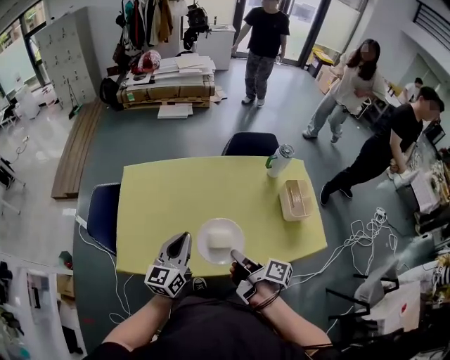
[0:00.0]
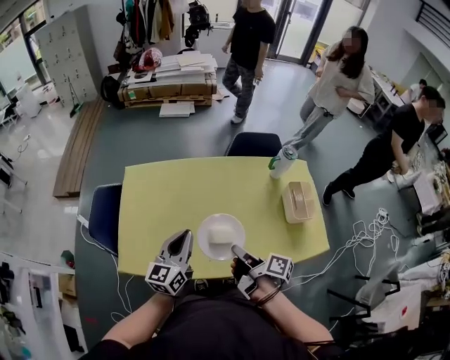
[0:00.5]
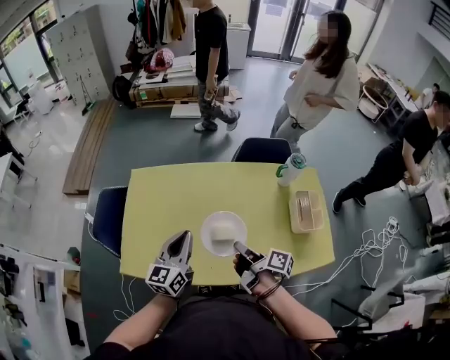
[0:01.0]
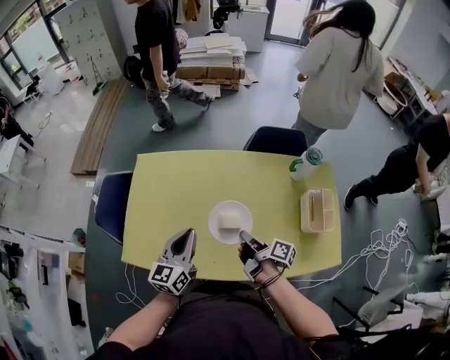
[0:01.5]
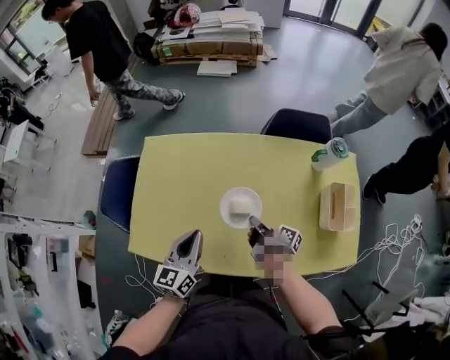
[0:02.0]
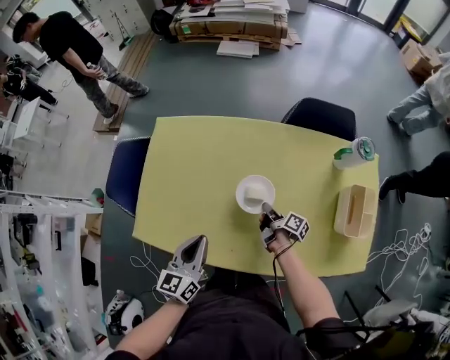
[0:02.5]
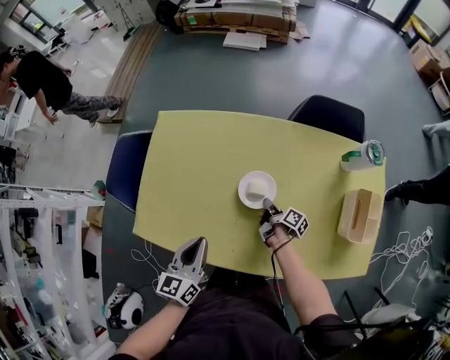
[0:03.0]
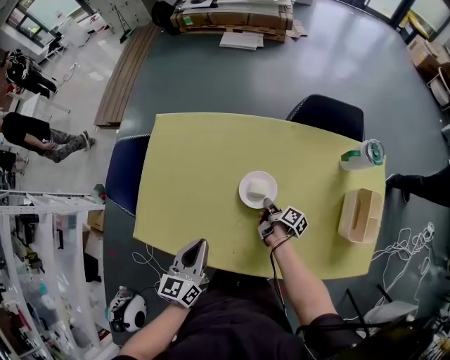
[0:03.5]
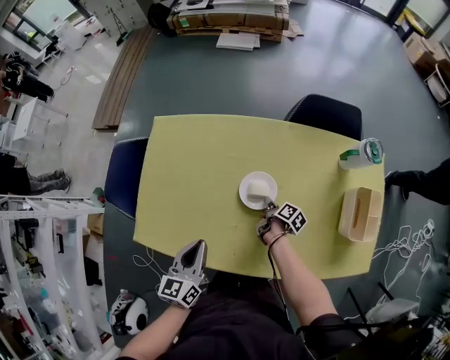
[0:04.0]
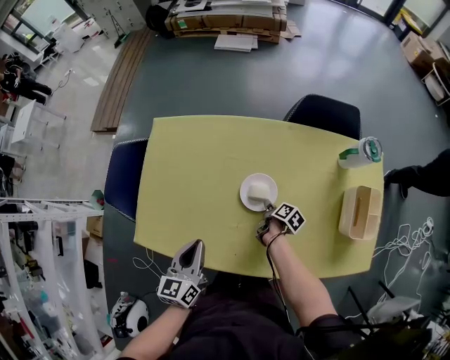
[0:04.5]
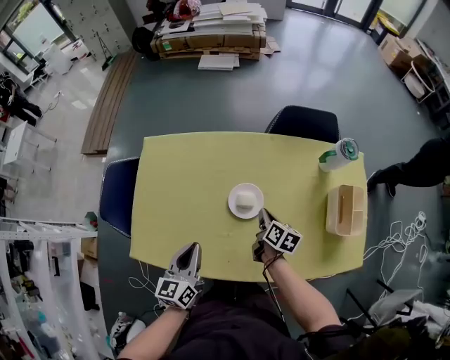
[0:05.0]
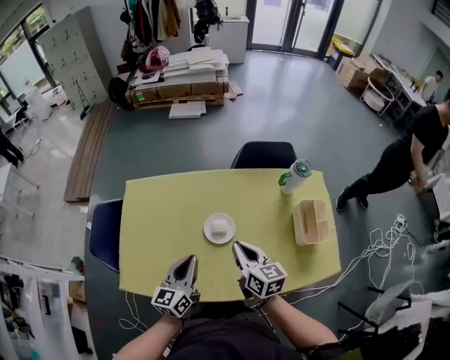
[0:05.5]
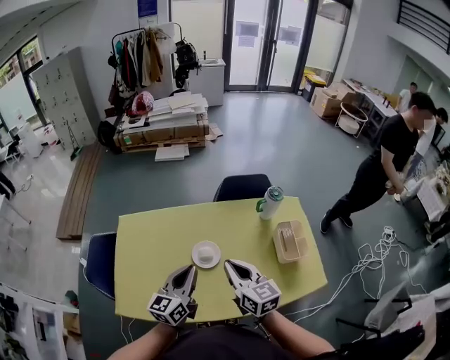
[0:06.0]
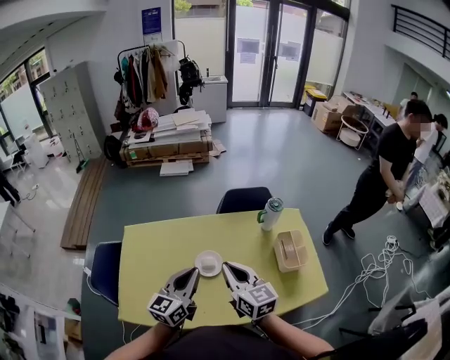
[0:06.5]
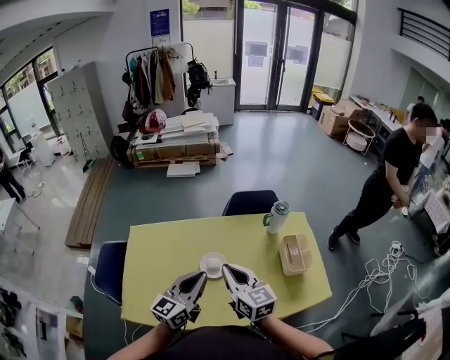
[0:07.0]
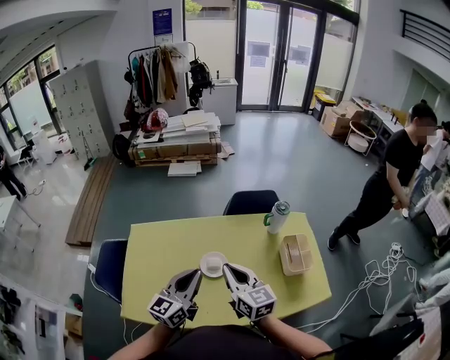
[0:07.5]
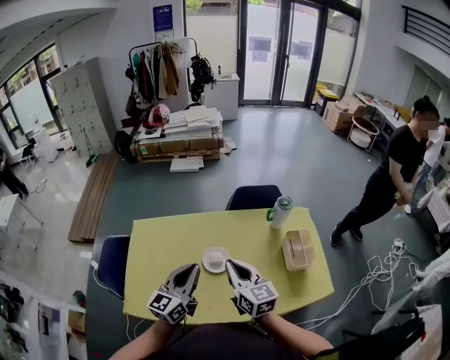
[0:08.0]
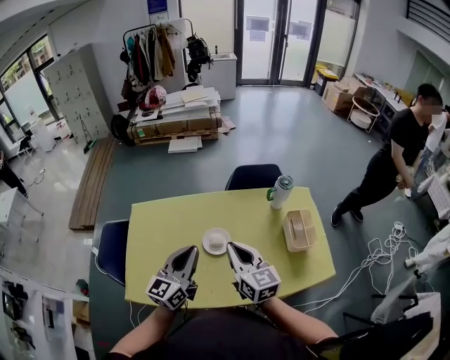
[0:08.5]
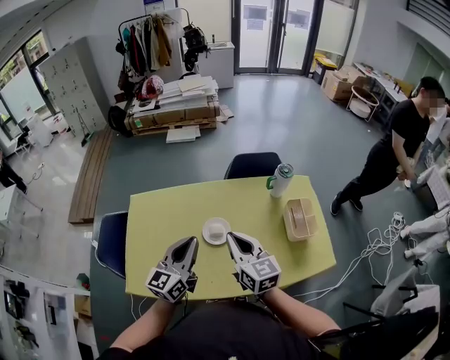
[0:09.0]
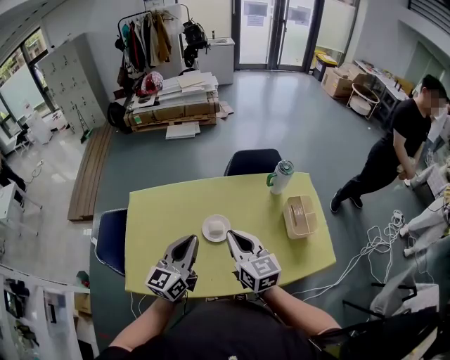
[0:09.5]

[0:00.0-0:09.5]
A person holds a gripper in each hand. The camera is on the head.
0:00.0 to 0:02.0: The left gripper heads downward and forward, covering about 10 cm. Meanwhile the right gripper heads forward and downward, covering about 25 cm.
0:02.0 to 0:04.0: The right gripper moves downward and forward, about 15 cm, and swivels roughly 30 degrees, while the left gripper moves downward, approximately 5 cm.
0:04.0 to 0:05.5: The right gripper is displaced upward by roughly 35 cm, and twists roughly 50 degrees counterclockwise, seen from behind, while the left gripper shifts about 10 cm upward and to the right.
0:05.5 to 0:07.5: The left gripper shifts approximately 15 cm upward, while the right gripper heads upward and backward, covering roughly 15 cm.
0:07.5 to 0:09.5: The grippers move only a little.

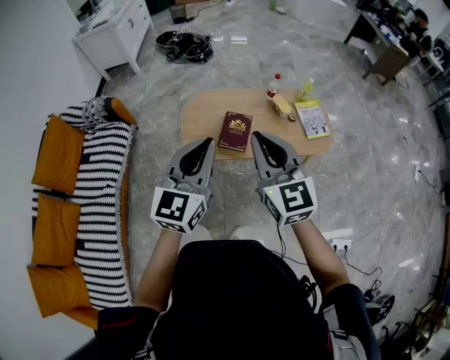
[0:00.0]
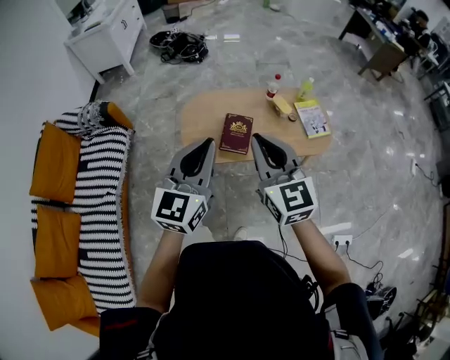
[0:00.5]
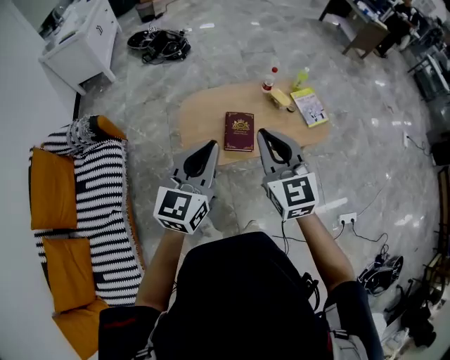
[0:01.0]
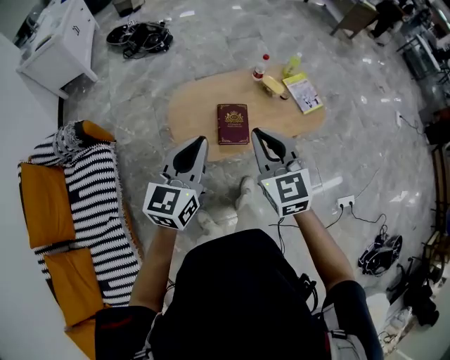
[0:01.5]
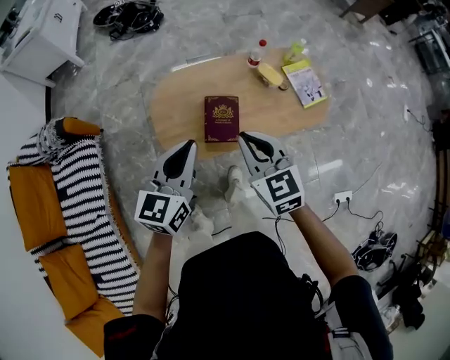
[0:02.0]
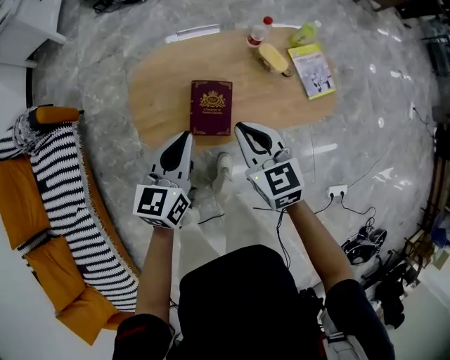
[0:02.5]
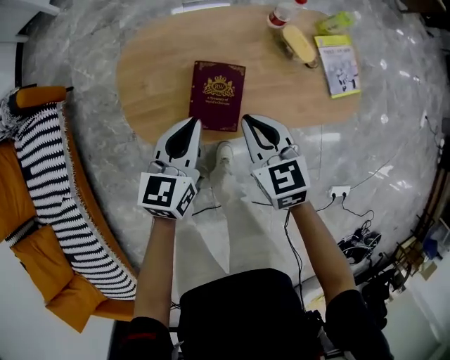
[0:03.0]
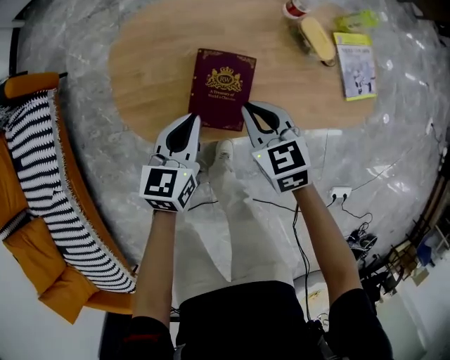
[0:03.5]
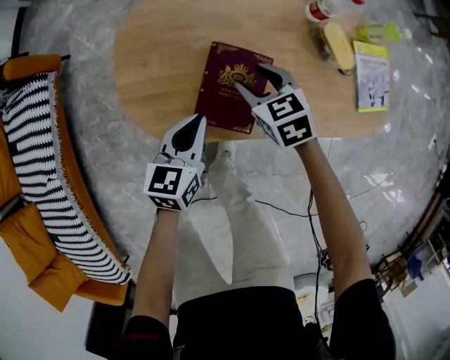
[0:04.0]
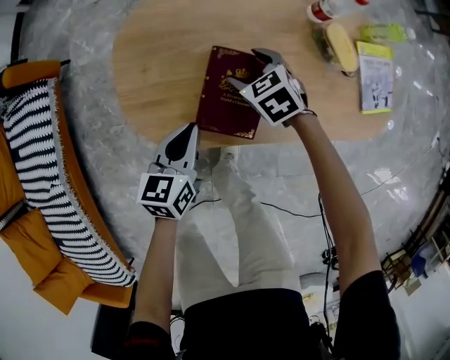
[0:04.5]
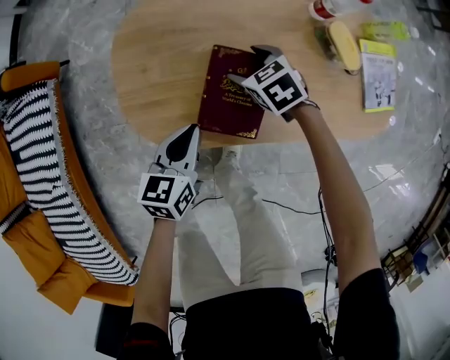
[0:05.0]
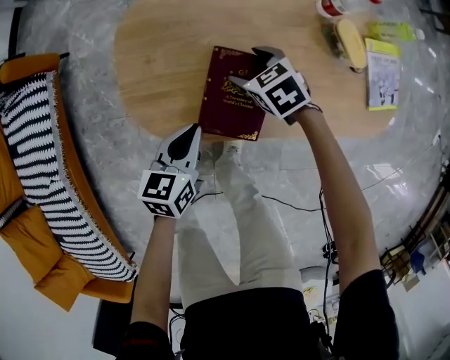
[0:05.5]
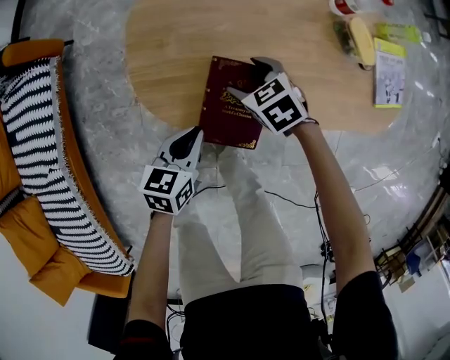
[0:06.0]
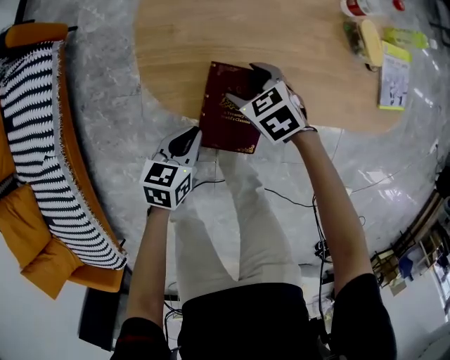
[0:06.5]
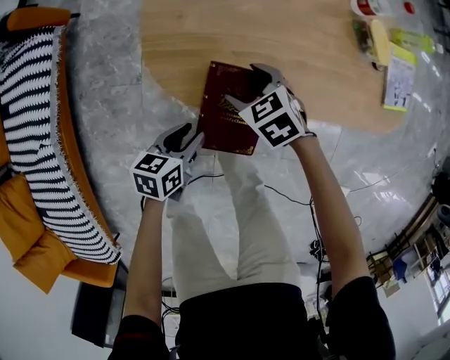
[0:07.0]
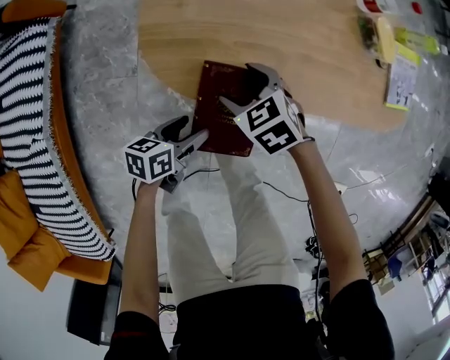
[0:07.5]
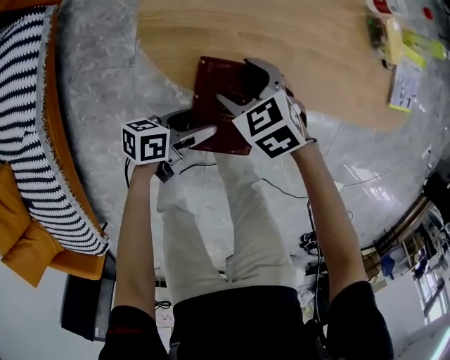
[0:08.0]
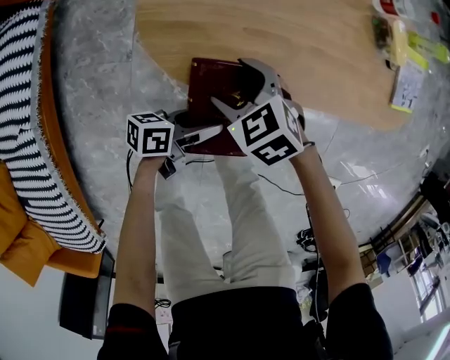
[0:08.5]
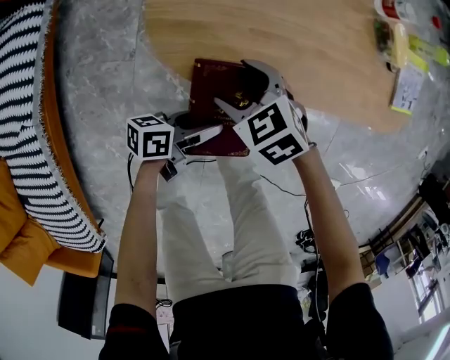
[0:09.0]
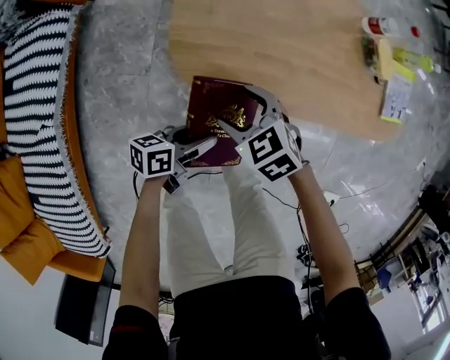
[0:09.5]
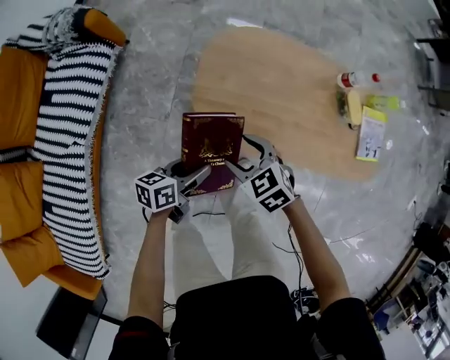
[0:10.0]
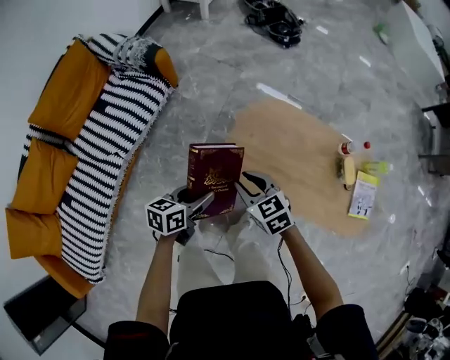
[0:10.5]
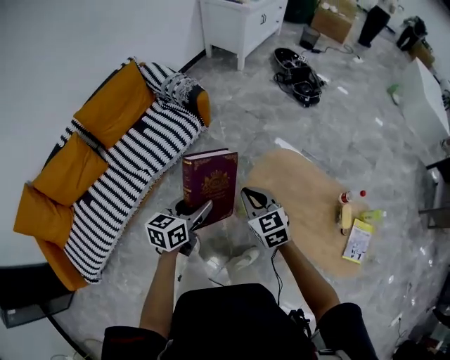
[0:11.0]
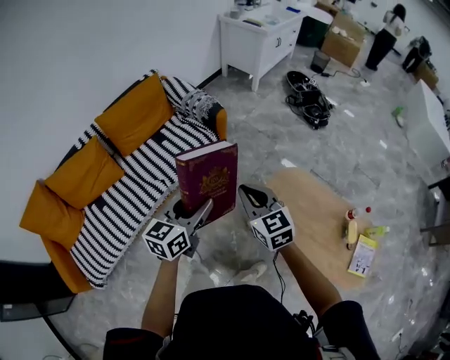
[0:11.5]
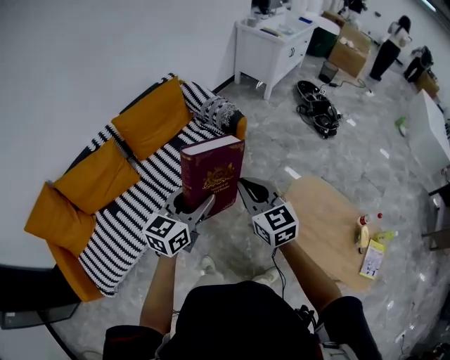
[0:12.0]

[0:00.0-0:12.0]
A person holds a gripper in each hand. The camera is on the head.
0:00.0 to 0:02.0: The right gripper is displaced downward and forward by about 25 cm, and changes its angle by some 20 degrees. The left gripper moves forward and downward, some 25 cm, and swivels some 20 degrees.
0:02.0 to 0:04.0: The left gripper goes roughly 35 cm downward, and swivels roughly 20 degrees. Meanwhile the right gripper shifts about 40 cm downward and forward, changes its angle by about 30 degrees, and opens.
0:04.0 to 0:06.0: The right gripper moves to the left and downward, some 10 cm, and opens its fingers. Meanwhile the left gripper is displaced to the left, backward and downward by some 10 cm.
0:06.0 to 0:08.0: The right gripper moves about 10 cm. The left gripper moves roughly 10 cm, changes its angle by roughly 40 degrees, and opens up.
0:08.0 to 0:10.0: Both grippers travel together upward, some 15 cm. The left gripper turns by some 20 degrees.
0:10.0 to 0:12.0: Both grippers travel together upward, some 40 cm. The right gripper points its fingers some 40 degrees further upward, and closes, while the left gripper rotates about 60 degrees.

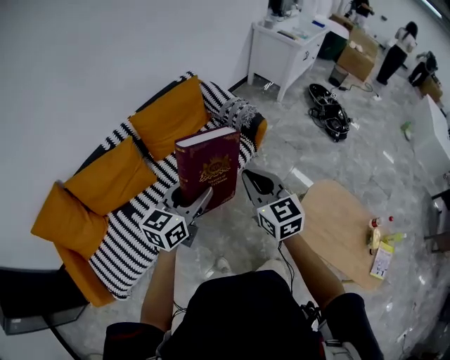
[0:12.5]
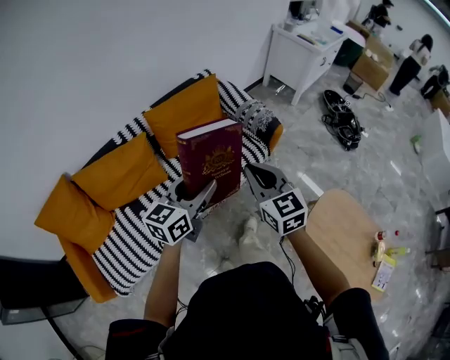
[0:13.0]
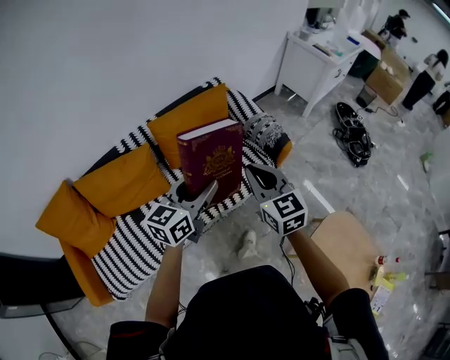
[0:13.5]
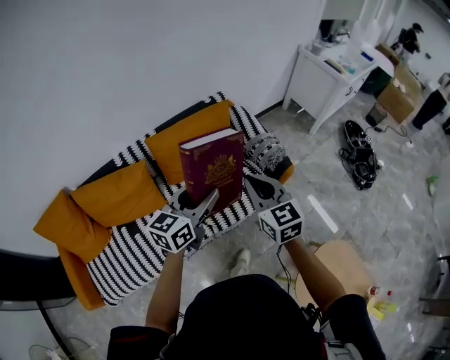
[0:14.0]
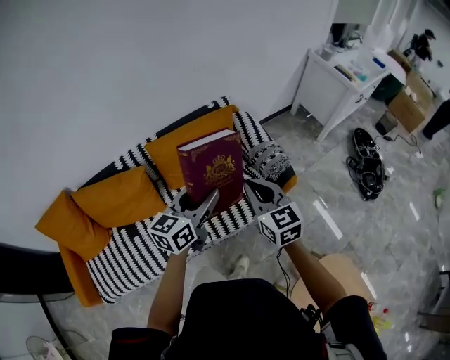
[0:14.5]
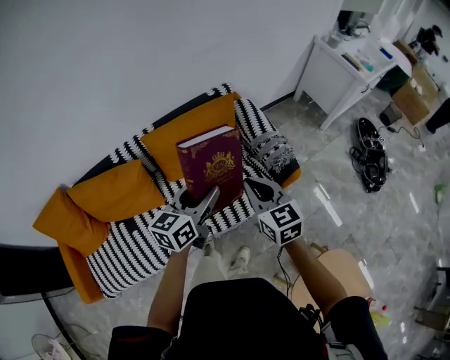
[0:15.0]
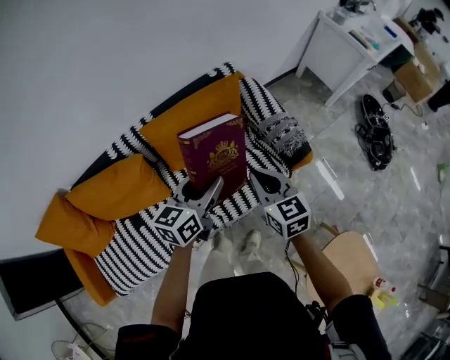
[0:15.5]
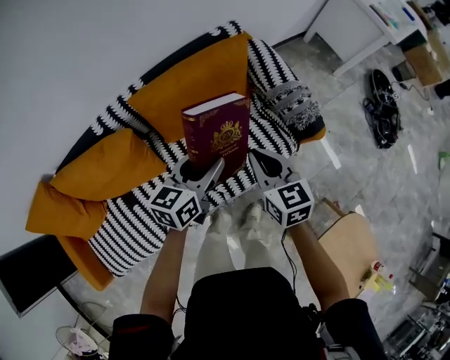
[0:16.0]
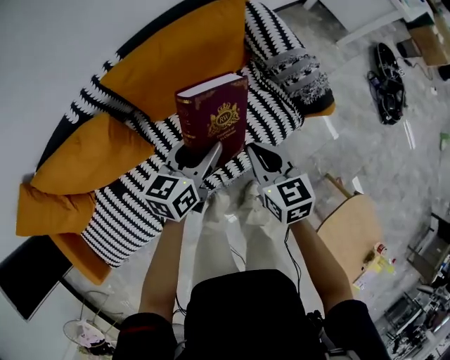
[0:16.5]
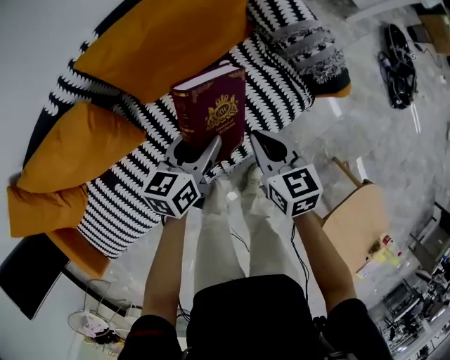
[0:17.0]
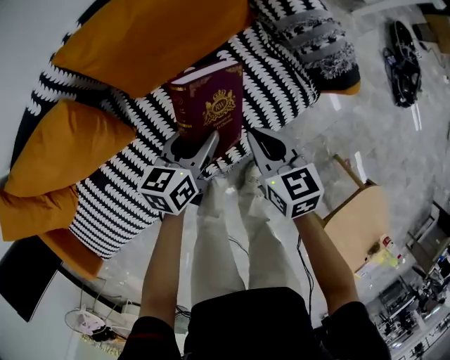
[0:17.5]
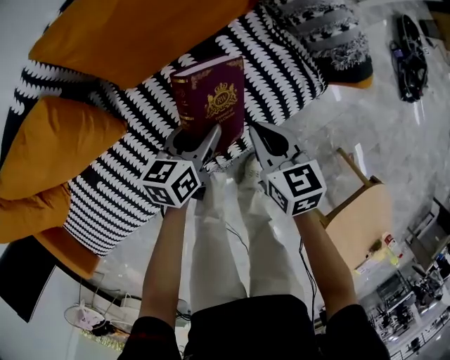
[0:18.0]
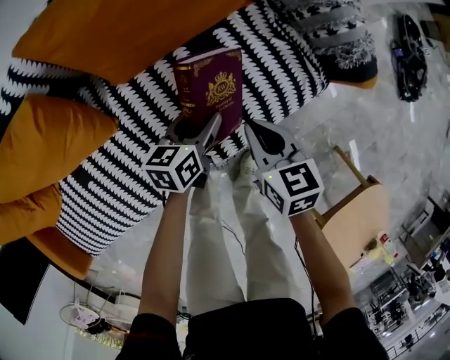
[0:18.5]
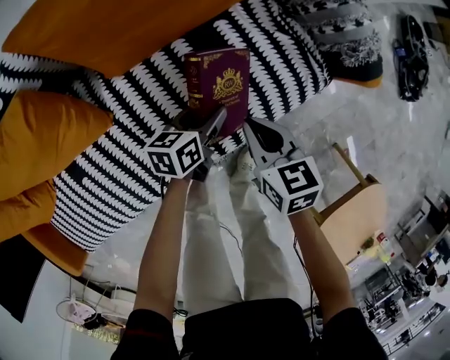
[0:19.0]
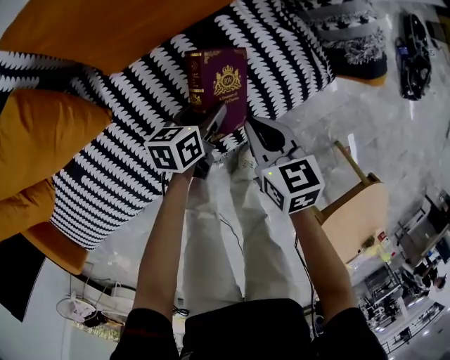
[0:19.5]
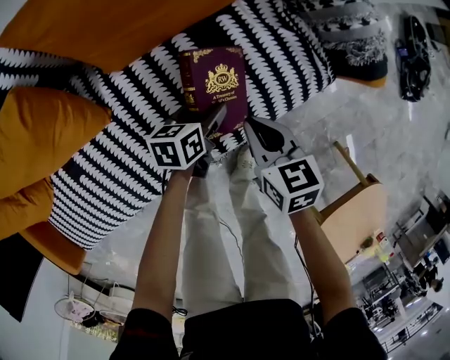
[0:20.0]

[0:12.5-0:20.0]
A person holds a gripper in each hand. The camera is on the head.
0:12.5 to 0:14.5: Both grippers move forward, some 30 cm.
0:14.5 to 0:16.5: The right gripper heads downward, covering some 25 cm, and swivels some 20 degrees, while the left gripper goes roughly 30 cm downward and forward.
0:16.5 to 0:18.0: The two grippers go some 20 cm downward.
0:18.0 to 0:20.0: The left gripper goes approximately 10 cm downward; the right gripper goes roughly 5 cm downward.
